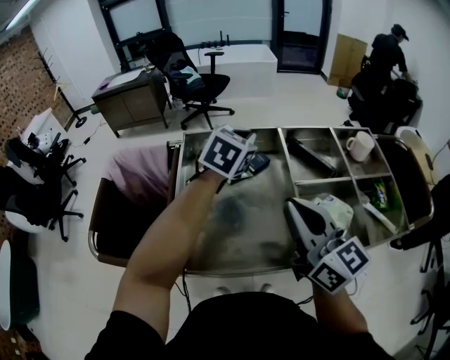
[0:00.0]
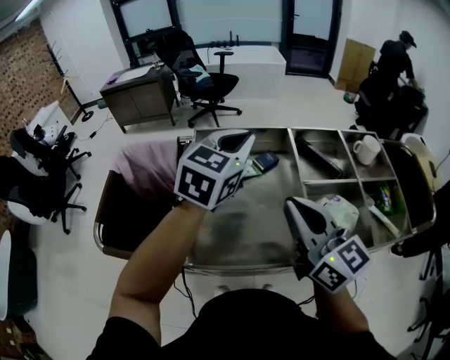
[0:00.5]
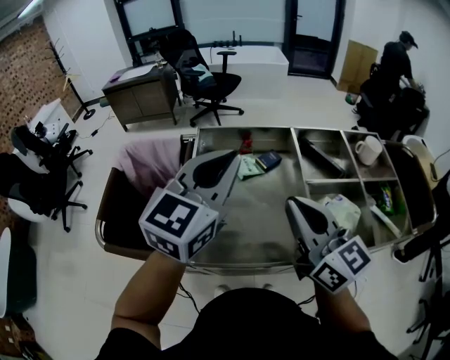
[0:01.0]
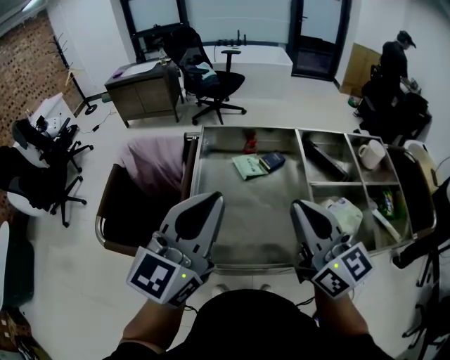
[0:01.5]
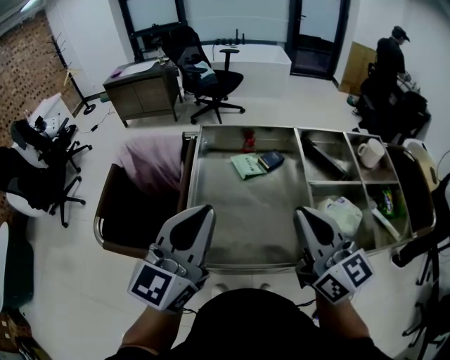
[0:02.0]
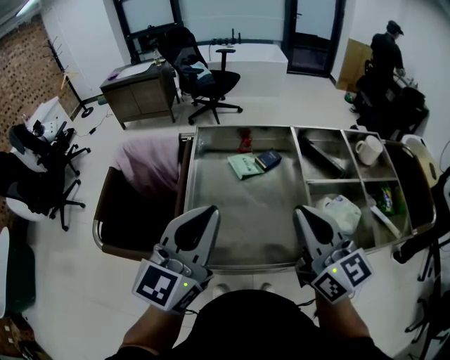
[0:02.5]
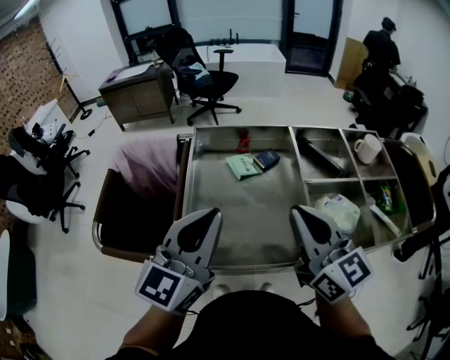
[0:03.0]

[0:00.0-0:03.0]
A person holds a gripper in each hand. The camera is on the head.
0.0 to 1.5 s: The left gripper is displaced backward, to the left and upward by about 30 cm, and tips its fingers upward by about 40 degrees.
1.5 to 3.0 s: The grippers make only small movements.

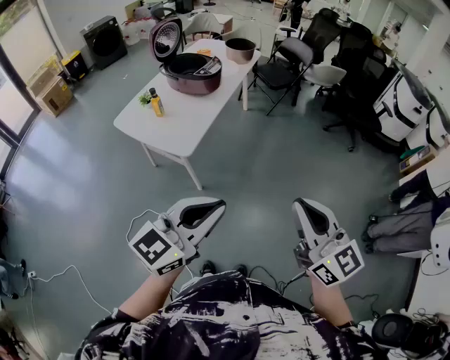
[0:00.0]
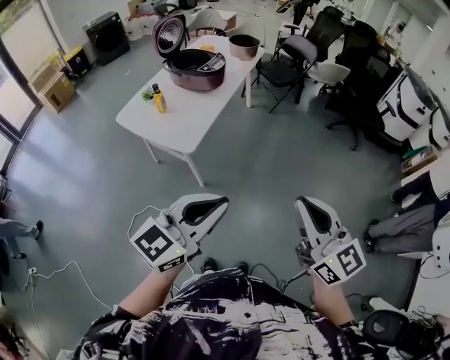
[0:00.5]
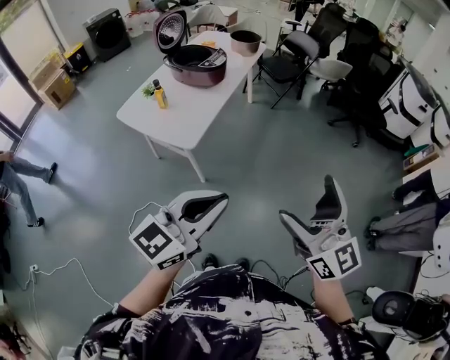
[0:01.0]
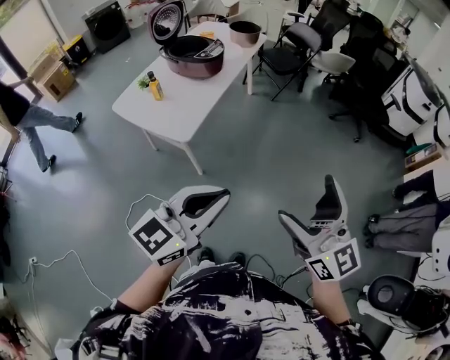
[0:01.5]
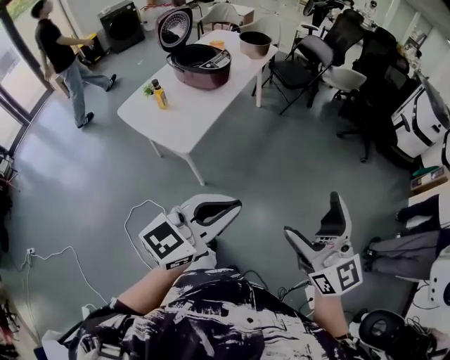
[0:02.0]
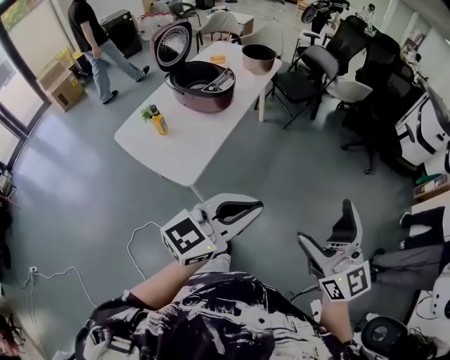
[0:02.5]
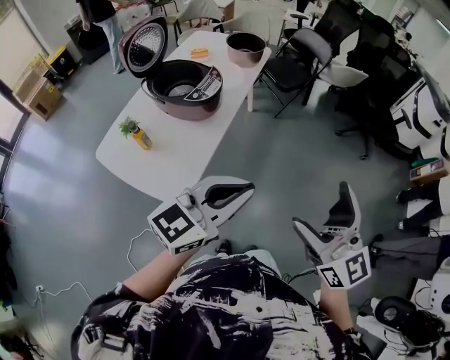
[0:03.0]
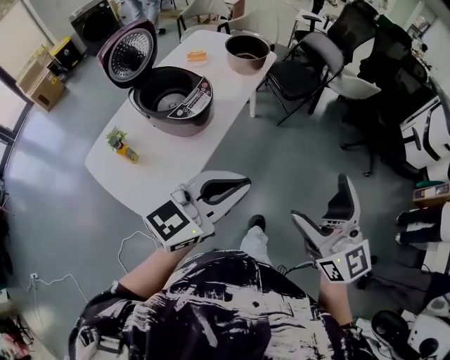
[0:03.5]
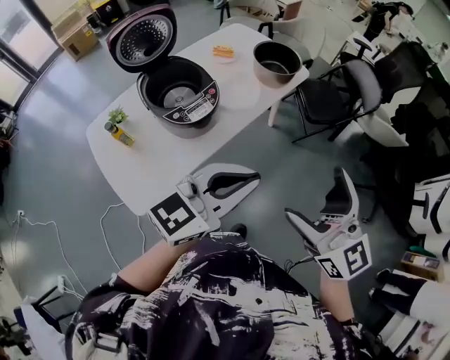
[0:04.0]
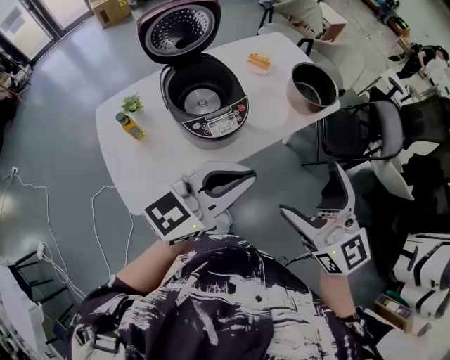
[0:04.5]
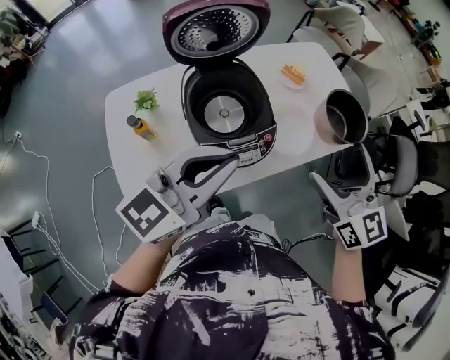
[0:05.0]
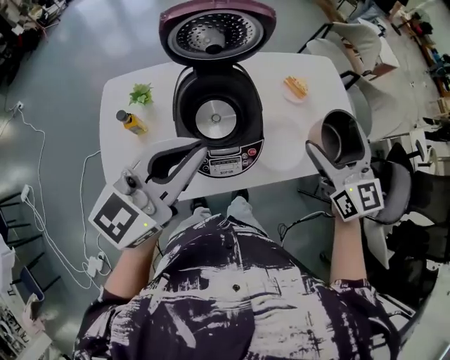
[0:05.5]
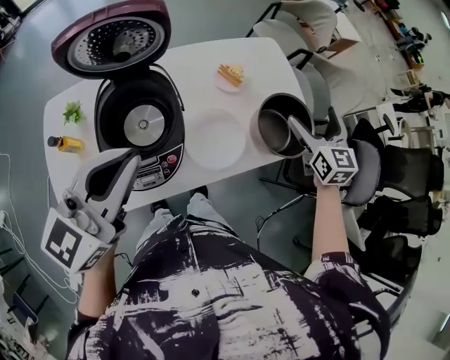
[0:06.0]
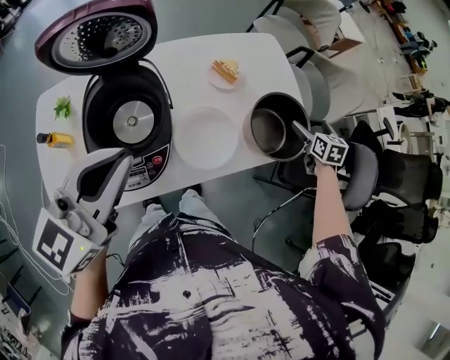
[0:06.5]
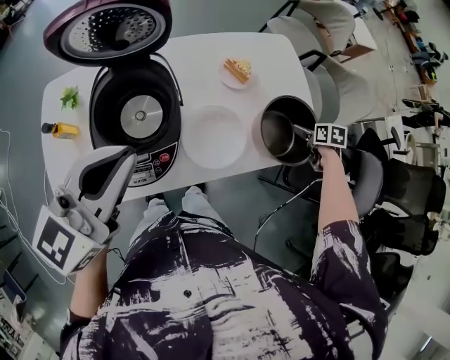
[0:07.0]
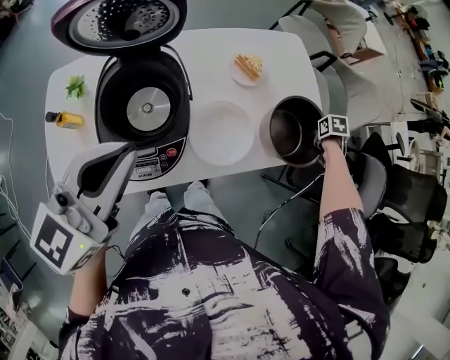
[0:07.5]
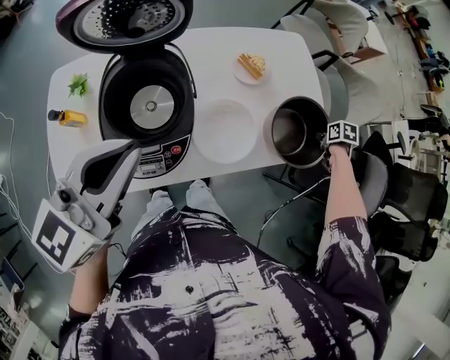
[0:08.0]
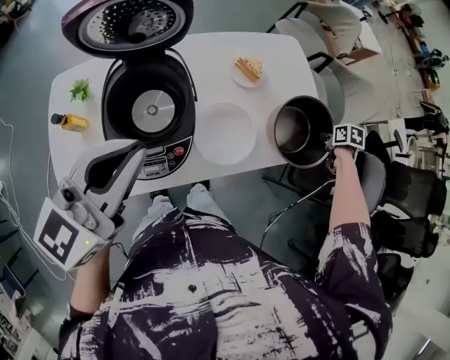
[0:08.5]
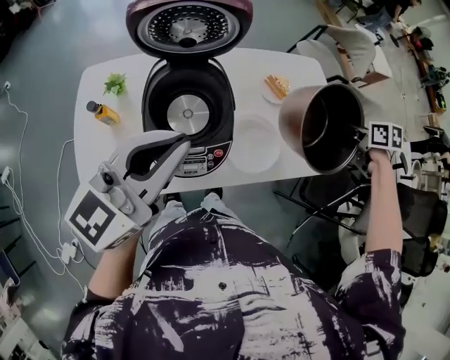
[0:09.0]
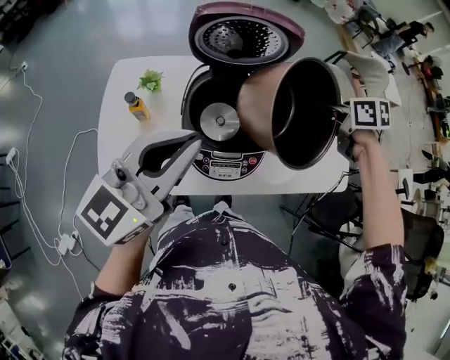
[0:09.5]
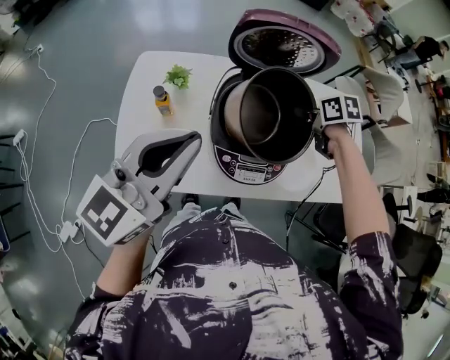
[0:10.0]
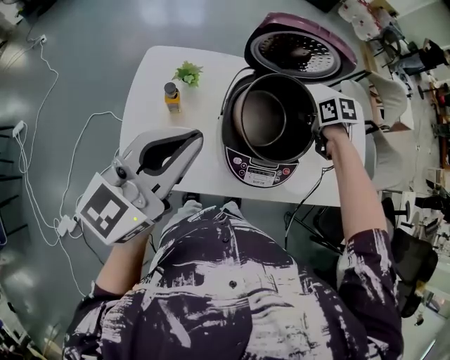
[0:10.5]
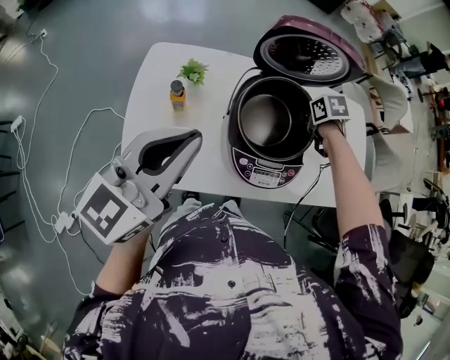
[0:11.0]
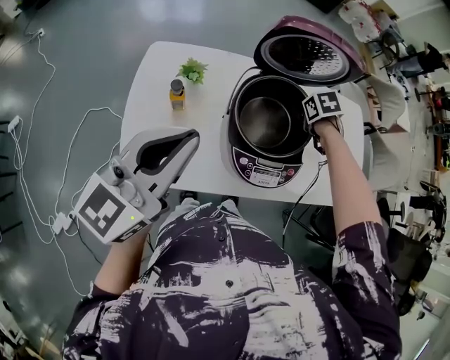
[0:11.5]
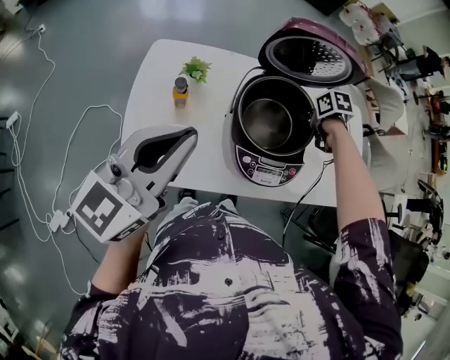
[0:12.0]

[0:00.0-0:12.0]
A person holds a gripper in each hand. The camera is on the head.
0.0 to 2.0 s: The grippers both shift forward and to the right by roughly 10 cm. The right gripper opens its fingers.
2.0 to 4.0 s: The two grippers travel together, forward, about 60 cm. The right gripper swivels some 20 degrees.
4.0 to 6.0 s: The right gripper ends up roughly 60 cm from where it was, and turns by some 30 degrees; the left gripper changes place by some 35 cm, and changes its angle by about 50 degrees.
6.0 to 8.0 s: The right gripper is displaced downward by some 25 cm, points its fingers approximately 60 degrees further downward, and closes its fingers.
8.0 to 10.0 s: The right gripper changes place by some 60 cm, and changes its angle by about 40 degrees; the left gripper shifts by approximately 20 cm.
10.0 to 12.0 s: The left gripper changes place by approximately 10 cm. The right gripper heads downward, covering approximately 5 cm.

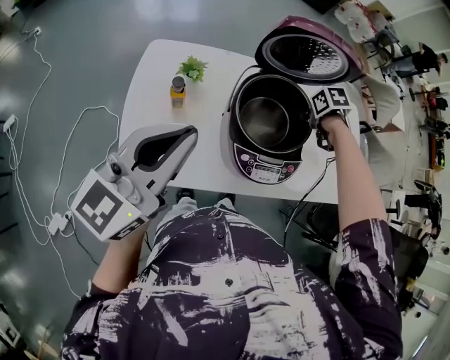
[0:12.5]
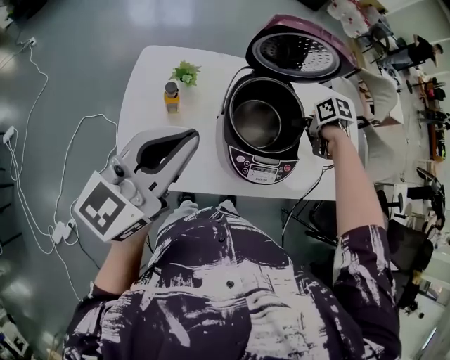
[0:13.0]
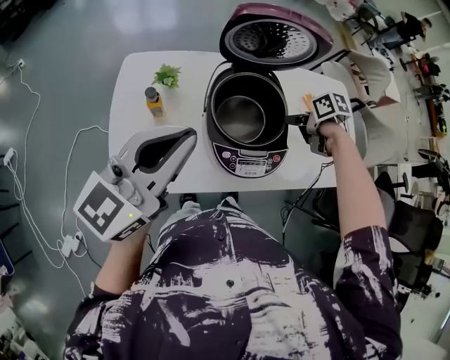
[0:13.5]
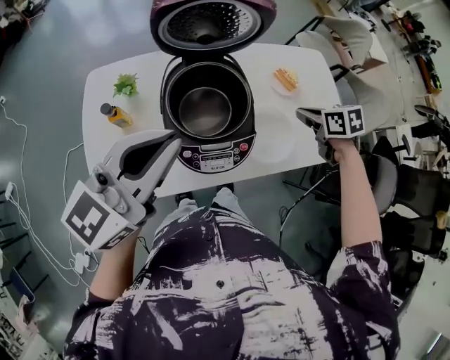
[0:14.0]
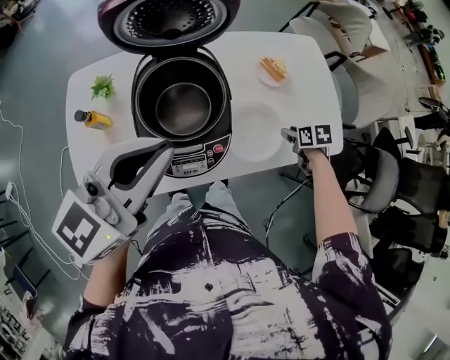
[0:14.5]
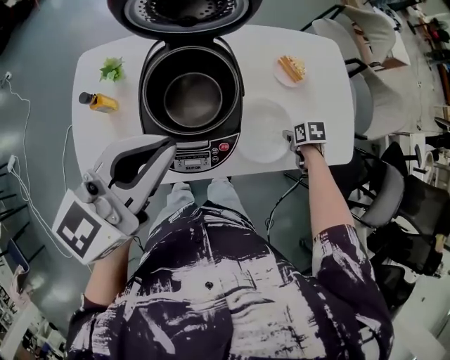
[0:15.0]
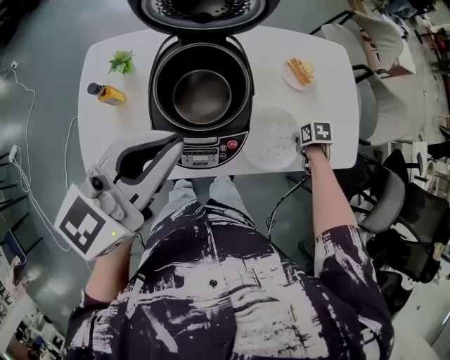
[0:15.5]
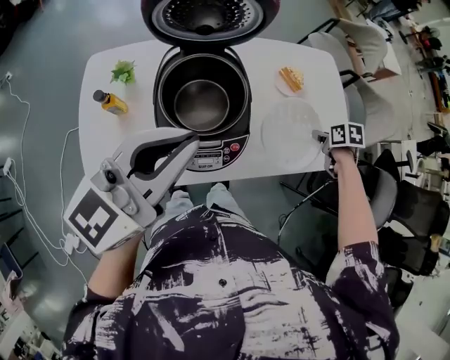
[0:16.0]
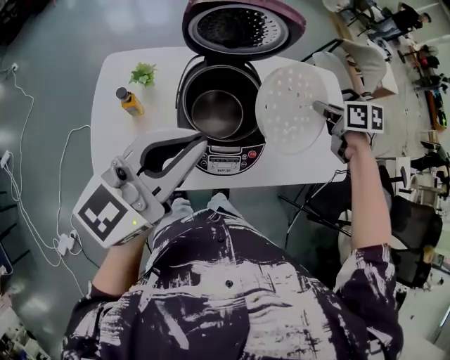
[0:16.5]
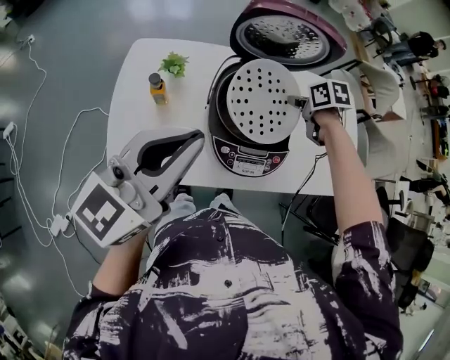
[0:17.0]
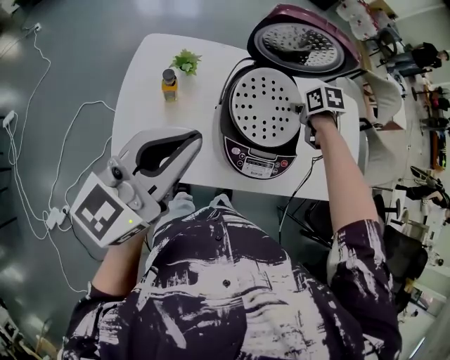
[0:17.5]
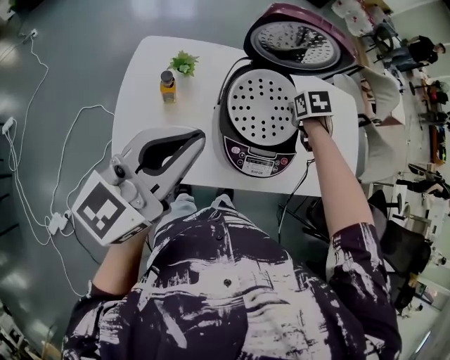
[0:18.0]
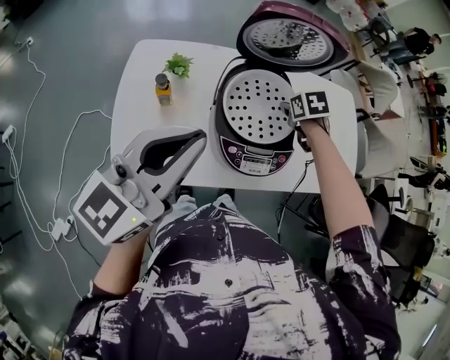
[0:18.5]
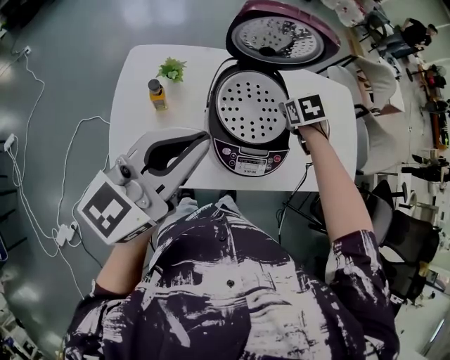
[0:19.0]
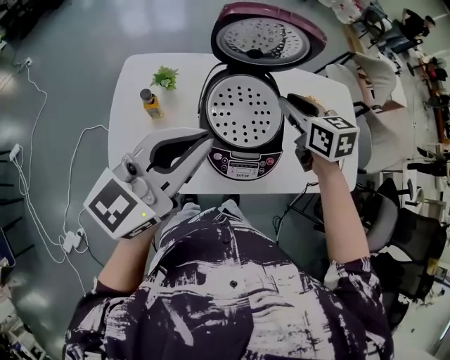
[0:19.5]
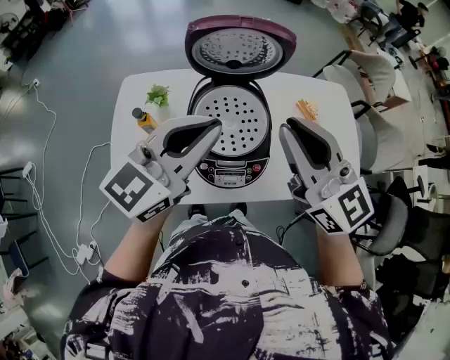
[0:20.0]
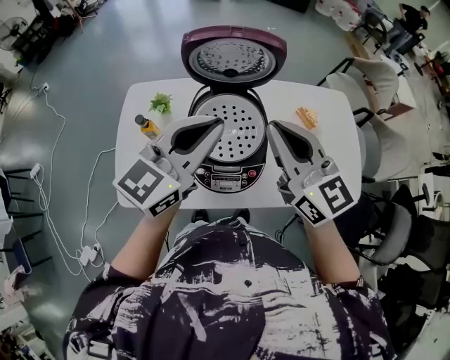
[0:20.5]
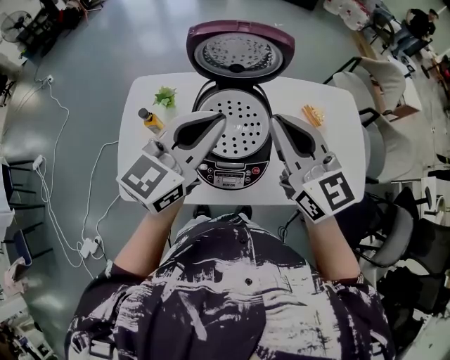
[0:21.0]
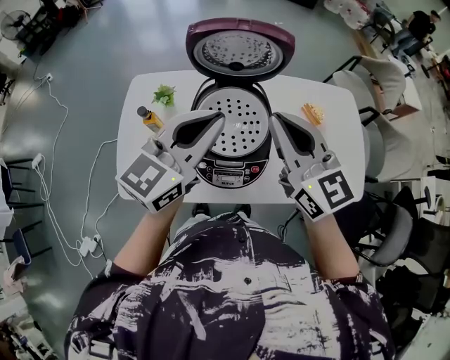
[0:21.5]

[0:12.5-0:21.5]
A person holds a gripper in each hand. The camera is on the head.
12.5 to 14.5 s: The left gripper moves about 25 cm, and turns by roughly 20 degrees, while the right gripper moves about 30 cm, and rotates approximately 20 degrees.
14.5 to 17.0 s: The right gripper goes up and down, roughly 30 cm each way, reversing 2 times. Meanwhile the left gripper ends up roughly 15 cm from where it was.
17.0 to 19.5 s: The right gripper shifts roughly 10 cm upward, and rotates some 30 degrees.
19.5 to 21.5 s: The left gripper is displaced to the right and forward by roughly 10 cm; the right gripper goes some 15 cm upward and backward, and tilts its fingers some 30 degrees upward.

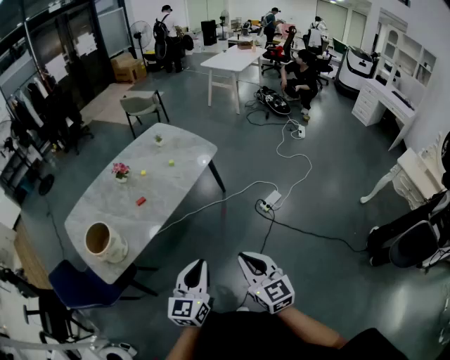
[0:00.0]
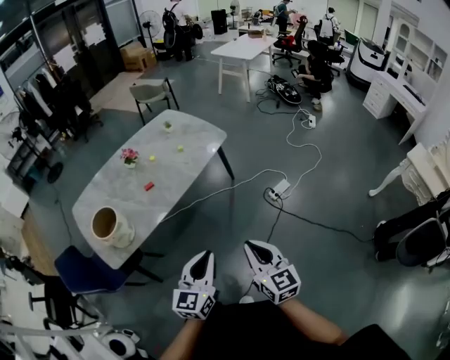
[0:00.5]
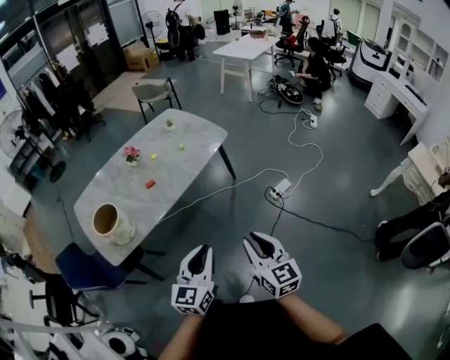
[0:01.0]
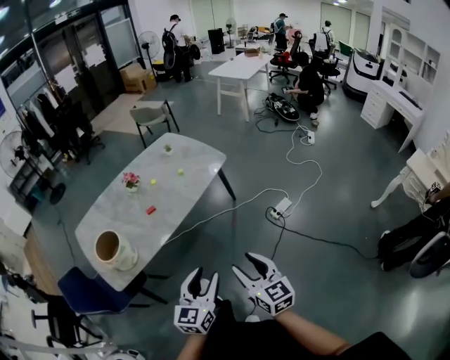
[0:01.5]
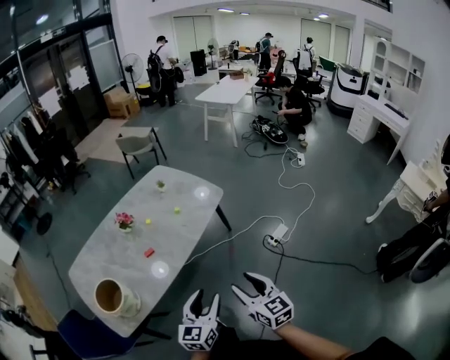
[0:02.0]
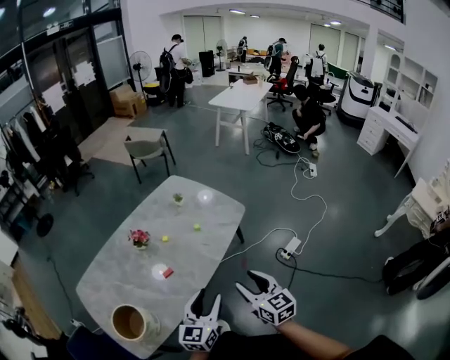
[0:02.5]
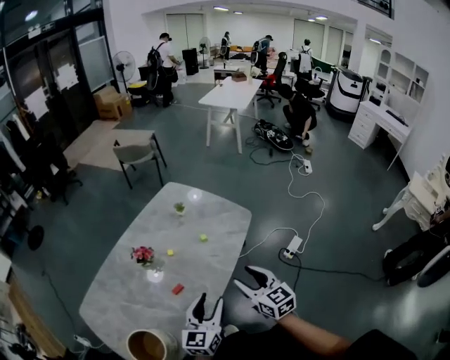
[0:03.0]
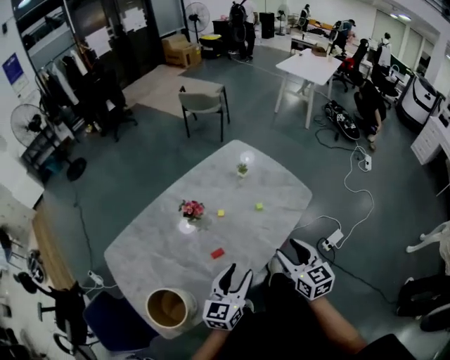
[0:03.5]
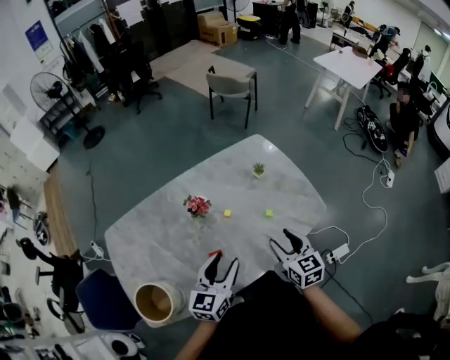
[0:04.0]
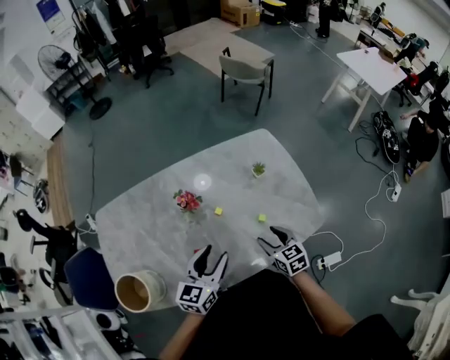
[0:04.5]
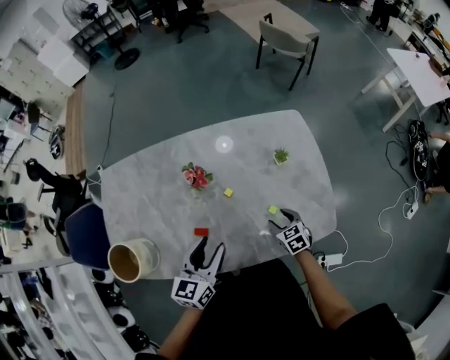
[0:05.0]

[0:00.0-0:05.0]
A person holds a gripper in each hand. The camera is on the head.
0.0 to 2.5 s: Both grippers move forward and to the left, about 30 cm. The right gripper opens, while the left gripper opens its fingers.
2.5 to 5.0 s: The left gripper ends up some 35 cm from where it was, and changes its angle by some 40 degrees. The right gripper moves about 50 cm, and tilts its fingers about 40 degrees downward.
